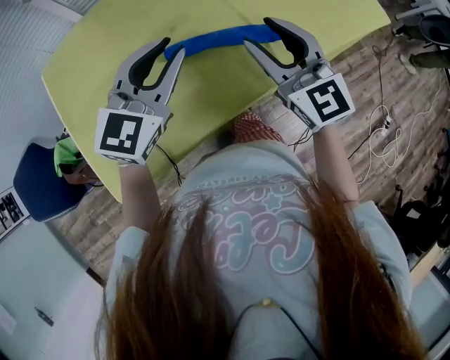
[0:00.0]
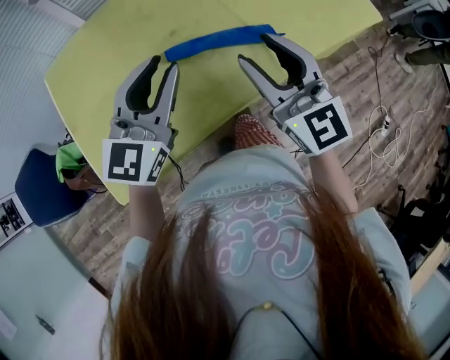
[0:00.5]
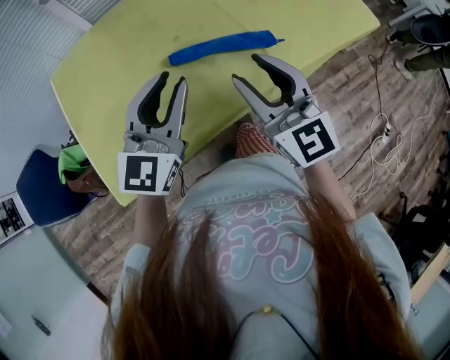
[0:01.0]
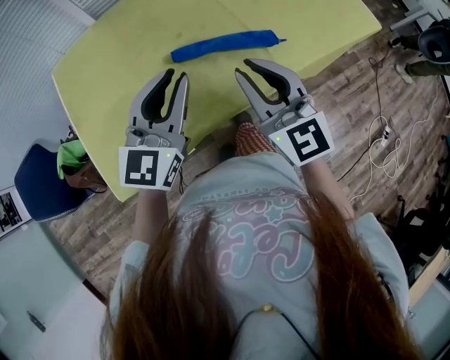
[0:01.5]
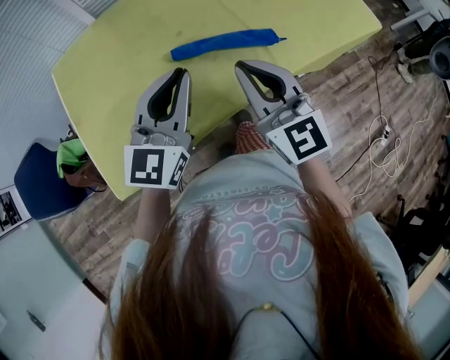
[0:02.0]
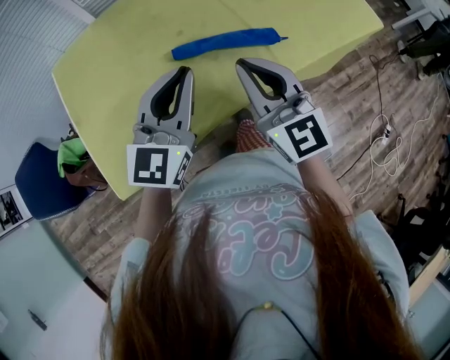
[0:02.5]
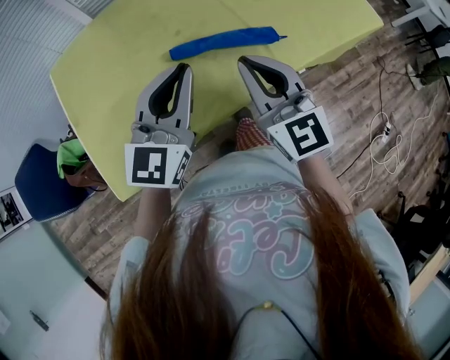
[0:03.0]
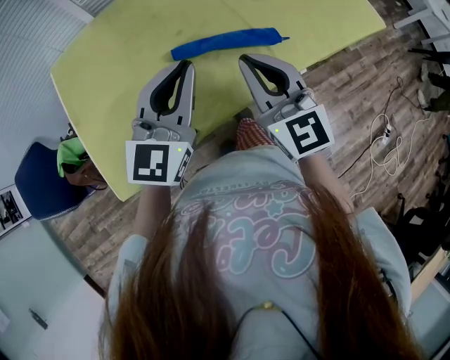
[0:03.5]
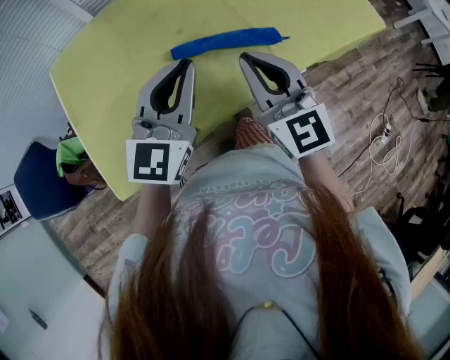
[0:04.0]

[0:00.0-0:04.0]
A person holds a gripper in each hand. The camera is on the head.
0:00.0 to 0:02.0: The grippers both shift backward by some 5 cm. The right gripper closes up.
0:02.0 to 0:04.0: The grippers make only small movements.

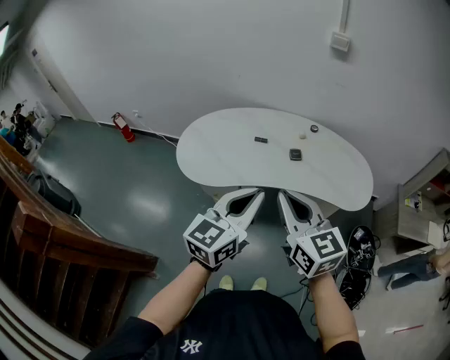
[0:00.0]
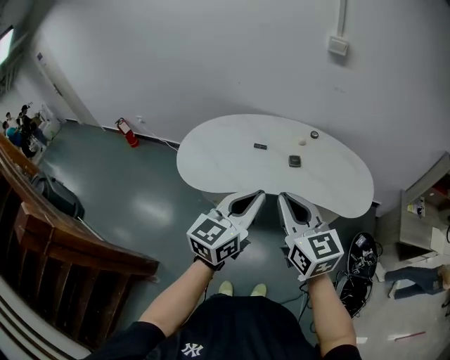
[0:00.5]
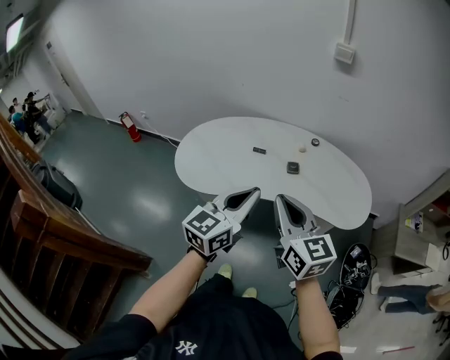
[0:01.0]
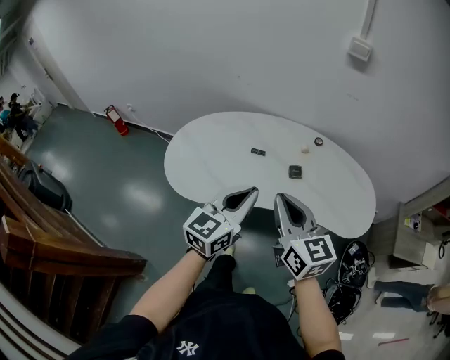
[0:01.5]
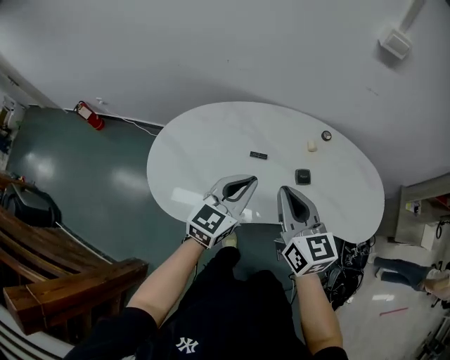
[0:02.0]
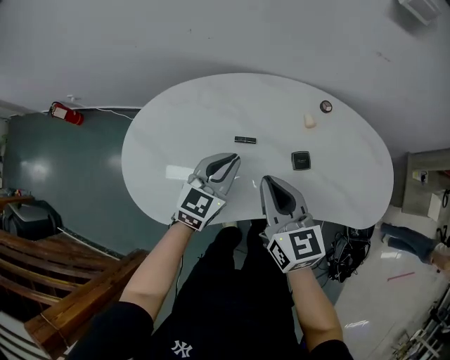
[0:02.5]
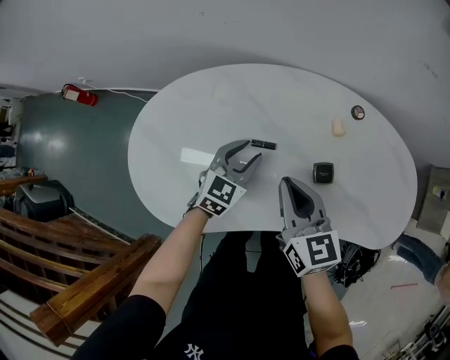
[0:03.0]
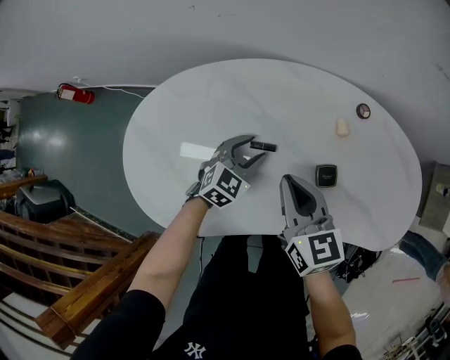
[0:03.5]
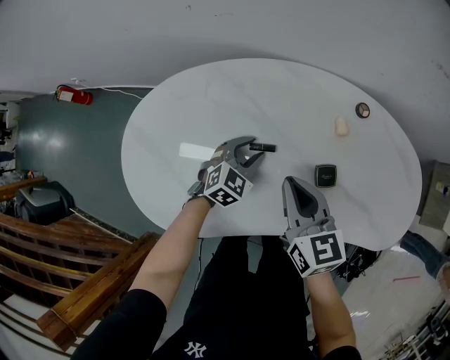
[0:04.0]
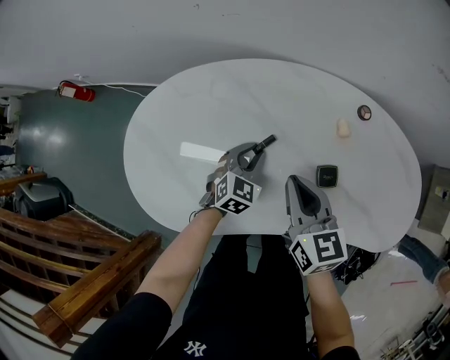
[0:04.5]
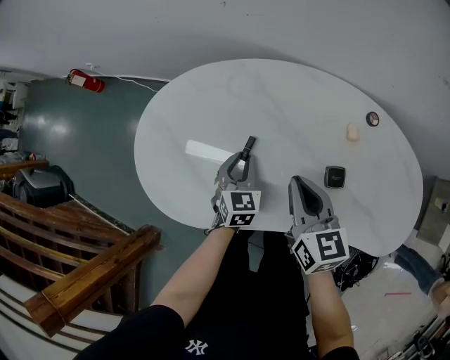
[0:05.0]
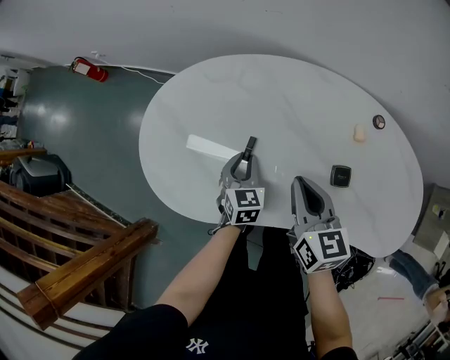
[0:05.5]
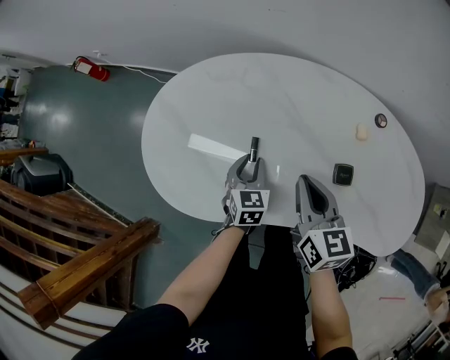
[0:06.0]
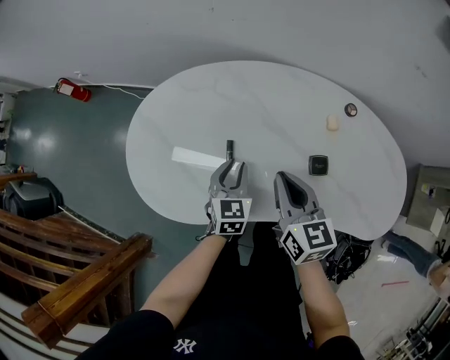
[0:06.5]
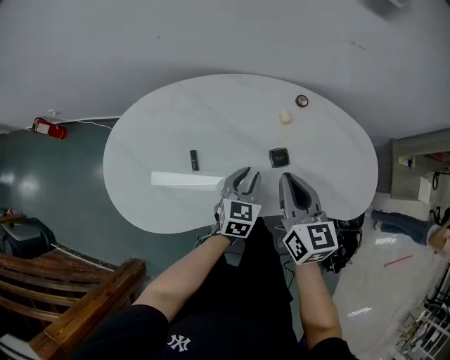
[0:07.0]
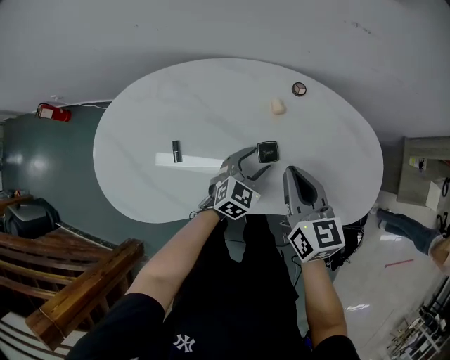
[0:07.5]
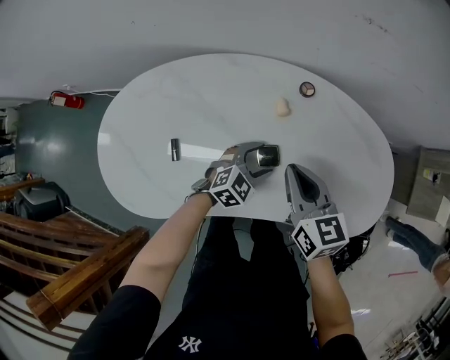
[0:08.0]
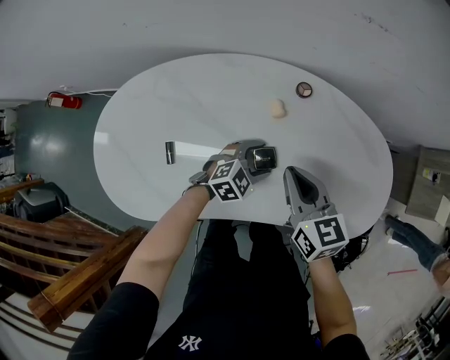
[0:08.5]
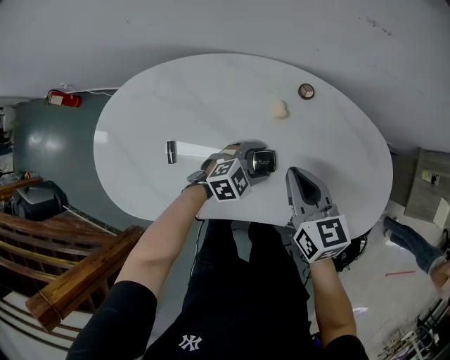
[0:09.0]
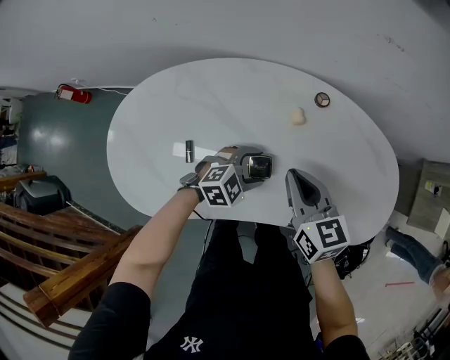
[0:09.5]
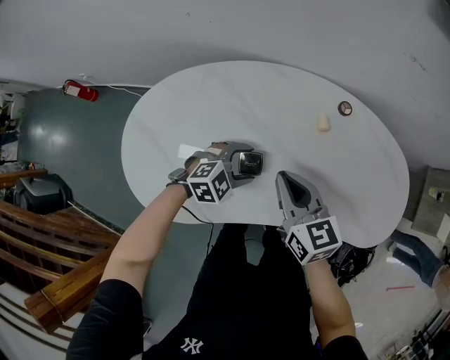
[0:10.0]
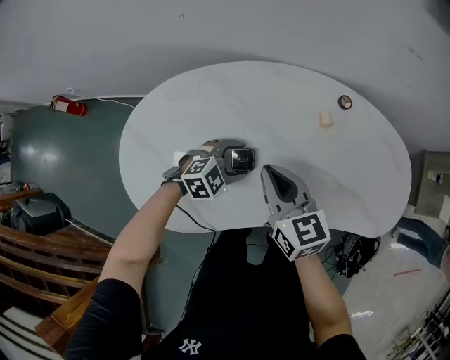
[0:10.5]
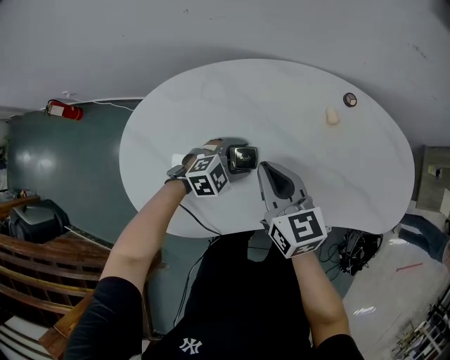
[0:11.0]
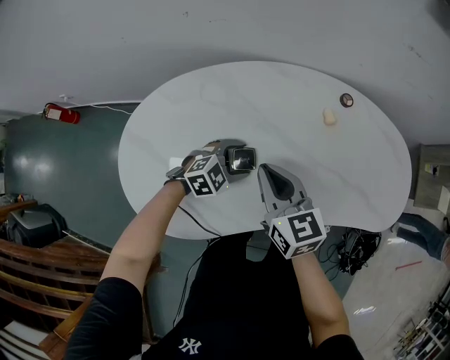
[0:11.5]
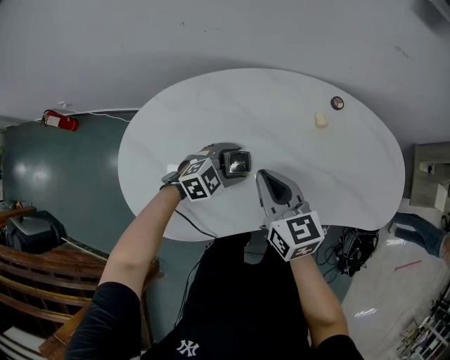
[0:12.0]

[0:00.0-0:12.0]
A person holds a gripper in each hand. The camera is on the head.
0:00.0 to 0:02.0: The right gripper travels forward by approximately 30 cm. Meanwhile the left gripper goes some 35 cm forward and downward.
0:02.0 to 0:04.0: The right gripper heads downward and forward, covering about 20 cm. The left gripper heads downward and forward, covering about 35 cm, tips its fingers downward by roughly 30 degrees, and opens up.
0:04.0 to 0:06.0: The left gripper heads to the left and backward, covering some 10 cm, and turns by some 50 degrees.
0:06.0 to 0:08.0: The left gripper travels upward and back again, some 10 cm each way, turns by roughly 60 degrees, and opens. Meanwhile the right gripper travels upward and back again, some 10 cm each way.
0:08.0 to 0:10.0: The right gripper moves to the left, some 15 cm. Meanwhile the left gripper travels to the left and backward by about 15 cm.
0:10.0 to 0:12.0: Both grippers move to the left, roughly 5 cm.

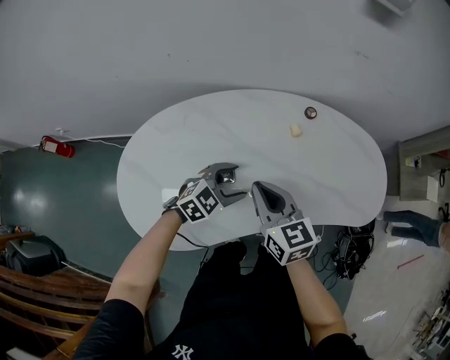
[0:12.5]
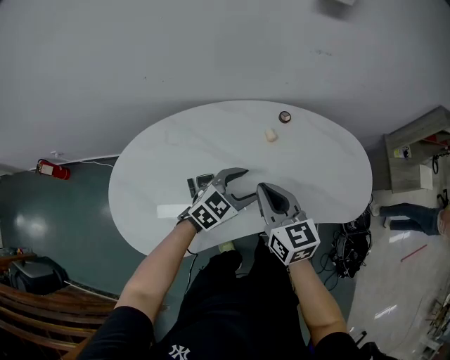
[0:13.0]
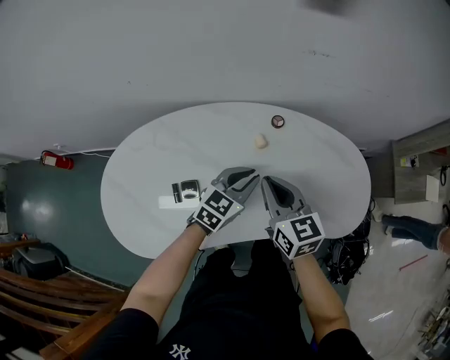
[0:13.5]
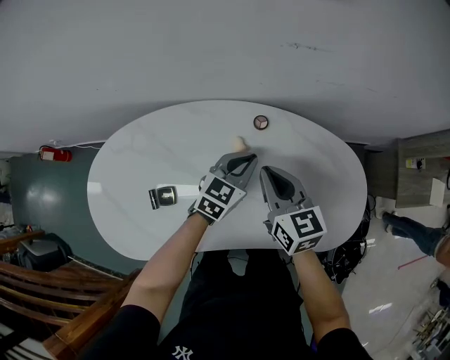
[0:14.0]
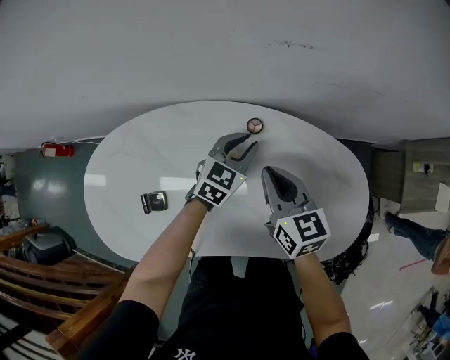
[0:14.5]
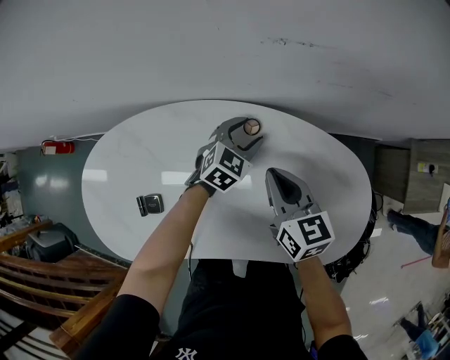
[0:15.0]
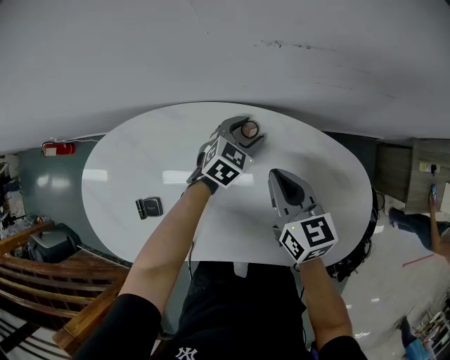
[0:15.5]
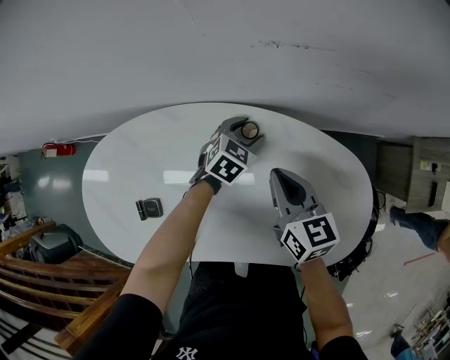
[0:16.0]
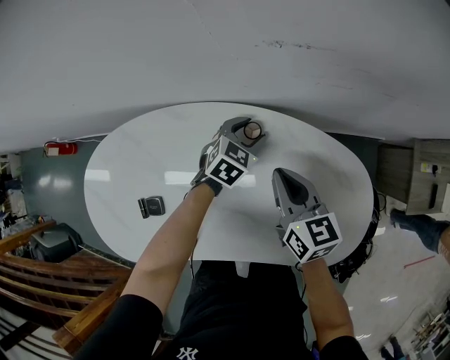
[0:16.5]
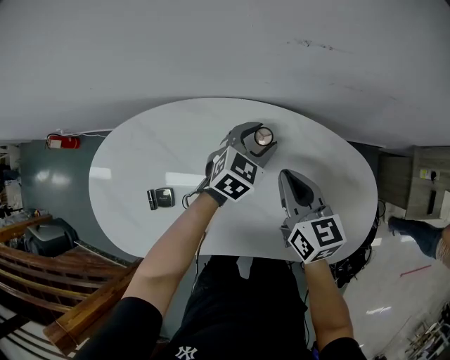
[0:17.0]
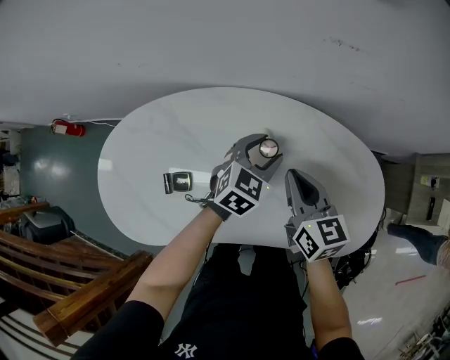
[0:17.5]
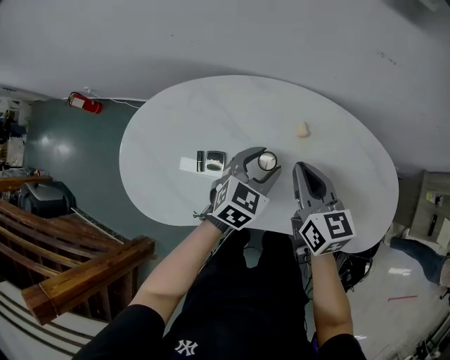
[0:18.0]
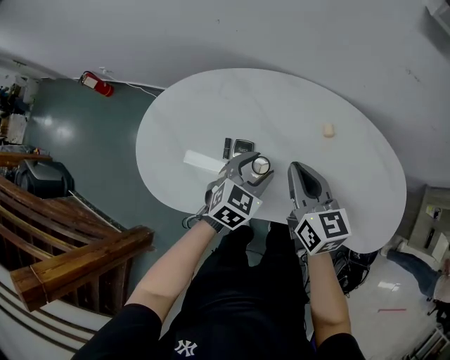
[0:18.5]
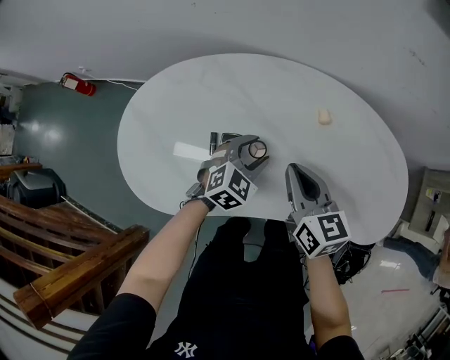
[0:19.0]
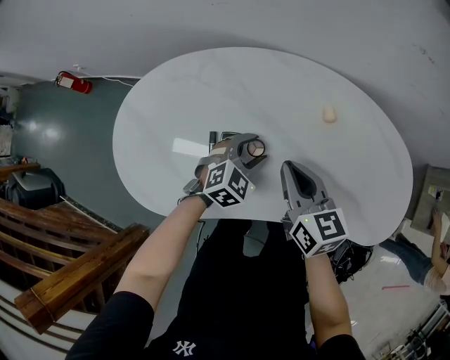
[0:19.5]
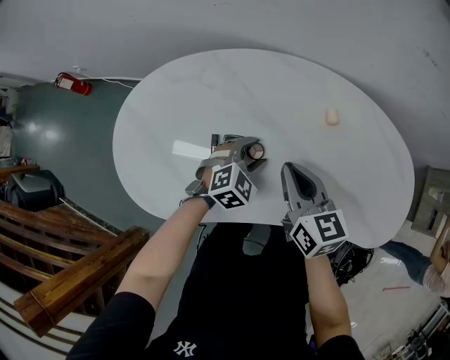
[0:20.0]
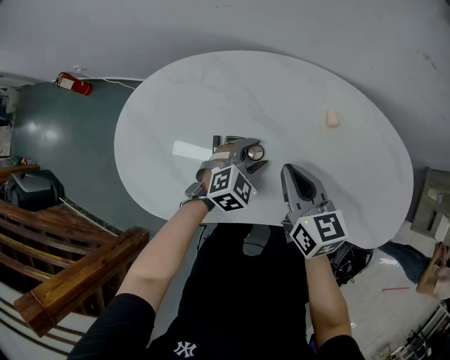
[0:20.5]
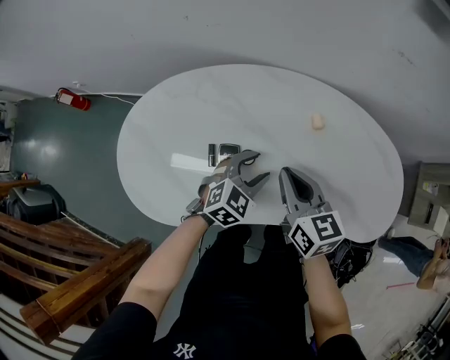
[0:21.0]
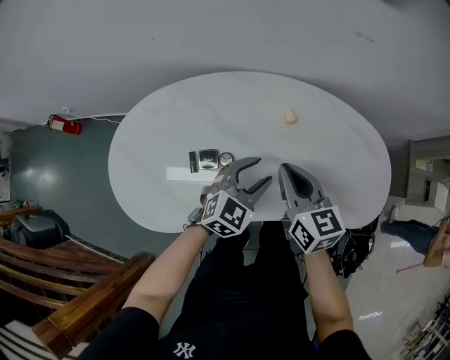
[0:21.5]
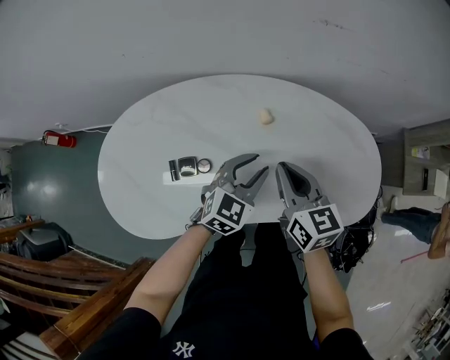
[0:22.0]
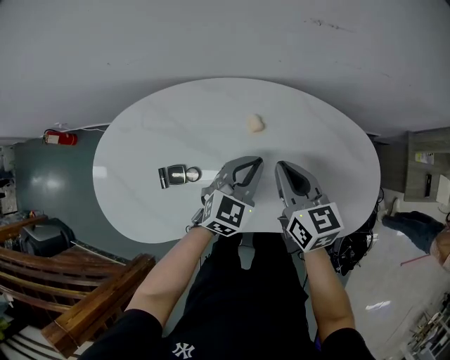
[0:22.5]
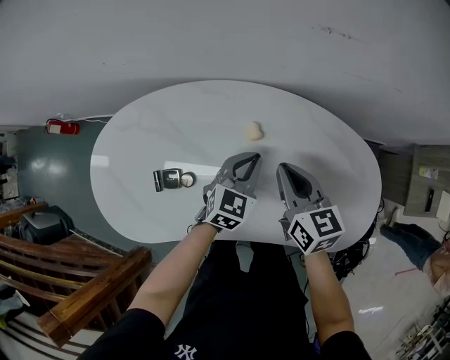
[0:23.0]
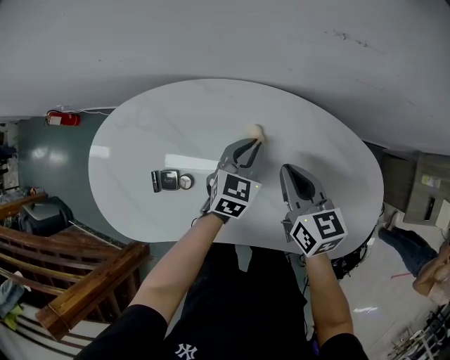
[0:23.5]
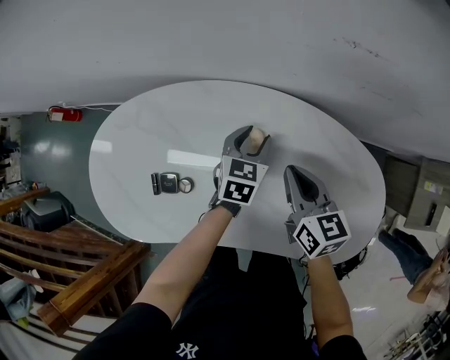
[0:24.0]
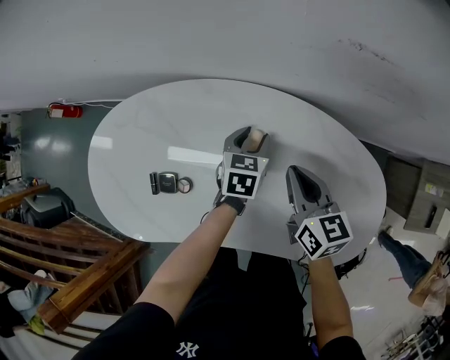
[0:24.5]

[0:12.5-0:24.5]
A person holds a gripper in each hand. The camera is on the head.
0:12.5 to 0:14.5: The right gripper moves to the right and forward, approximately 35 cm, while the left gripper is displaced forward and to the right by roughly 35 cm, swivels approximately 30 degrees, and closes.
0:14.5 to 0:16.5: The left gripper is displaced downward and forward by some 10 cm, and opens up. Meanwhile the right gripper moves about 5 cm.
0:16.5 to 0:18.5: The right gripper moves to the left and backward, roughly 30 cm, while the left gripper heads backward, to the left and upward, covering approximately 40 cm.
0:18.5 to 0:20.5: Both grippers travel together downward, approximately 10 cm. The left gripper turns by roughly 20 degrees.
0:20.5 to 0:22.5: The left gripper travels to the right and upward by approximately 20 cm, and closes up. The right gripper moves to the right, roughly 20 cm.
0:22.5 to 0:24.5: The right gripper is displaced forward and downward by about 10 cm. The left gripper travels forward and downward by roughly 20 cm, changes its angle by roughly 40 degrees, and opens.
